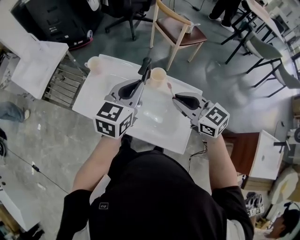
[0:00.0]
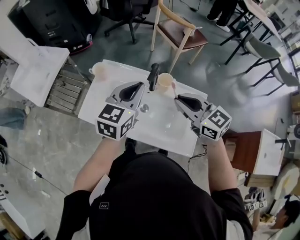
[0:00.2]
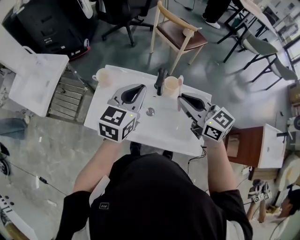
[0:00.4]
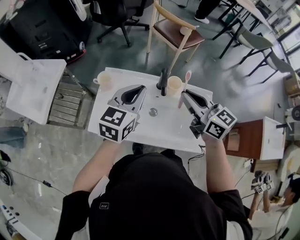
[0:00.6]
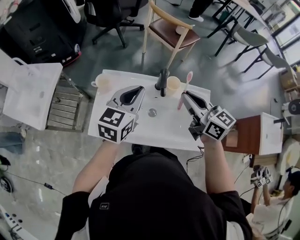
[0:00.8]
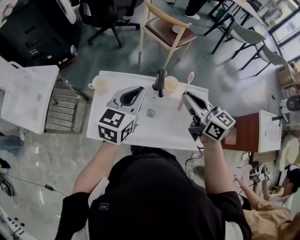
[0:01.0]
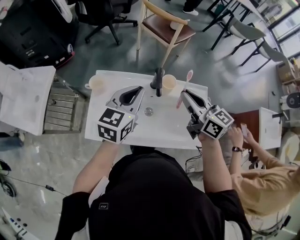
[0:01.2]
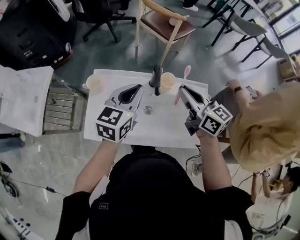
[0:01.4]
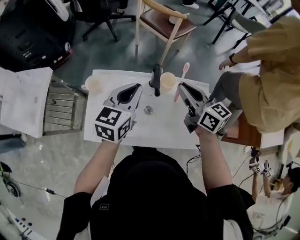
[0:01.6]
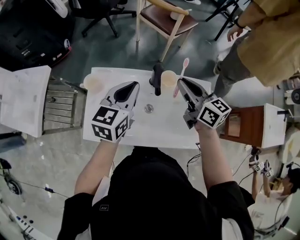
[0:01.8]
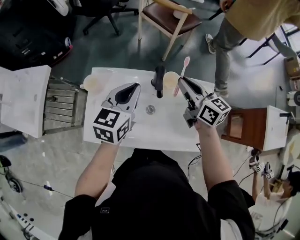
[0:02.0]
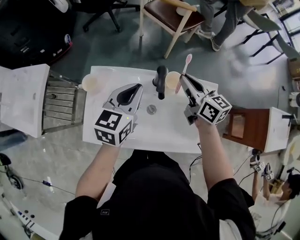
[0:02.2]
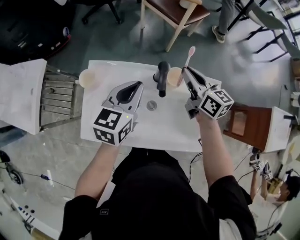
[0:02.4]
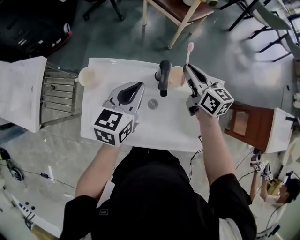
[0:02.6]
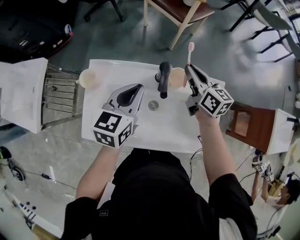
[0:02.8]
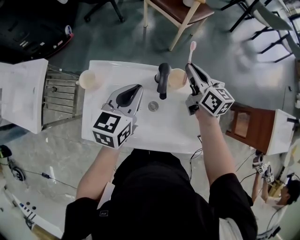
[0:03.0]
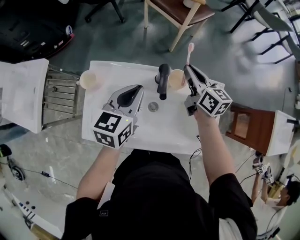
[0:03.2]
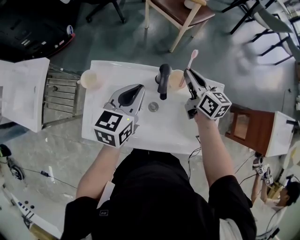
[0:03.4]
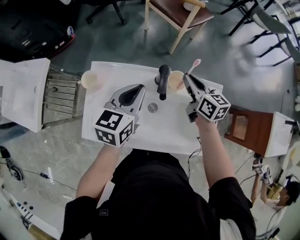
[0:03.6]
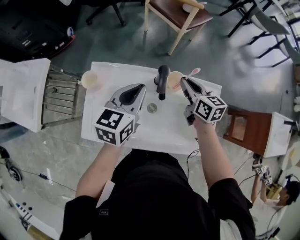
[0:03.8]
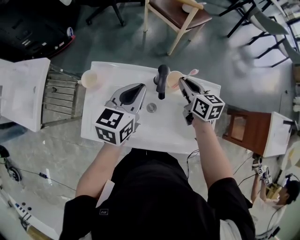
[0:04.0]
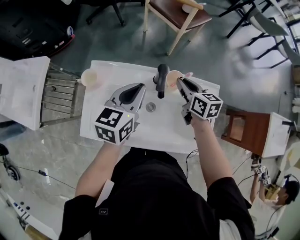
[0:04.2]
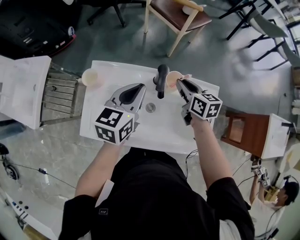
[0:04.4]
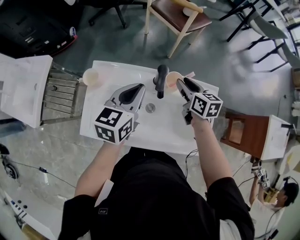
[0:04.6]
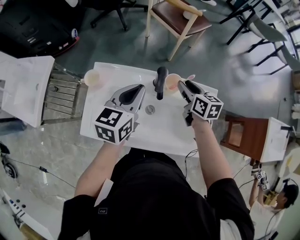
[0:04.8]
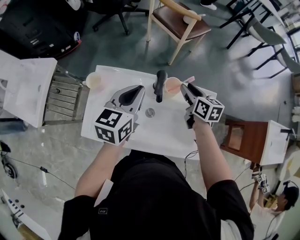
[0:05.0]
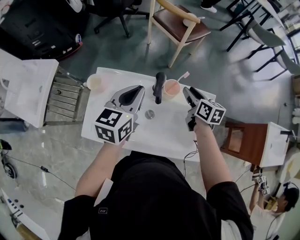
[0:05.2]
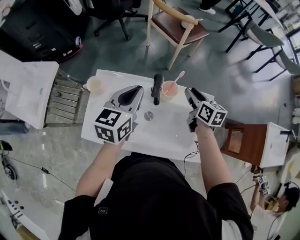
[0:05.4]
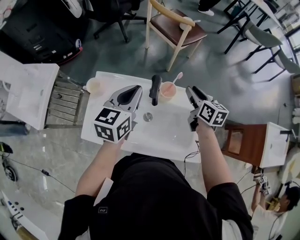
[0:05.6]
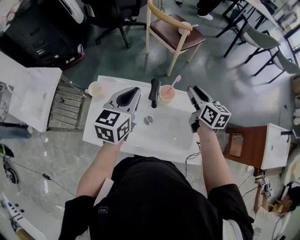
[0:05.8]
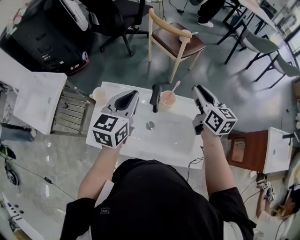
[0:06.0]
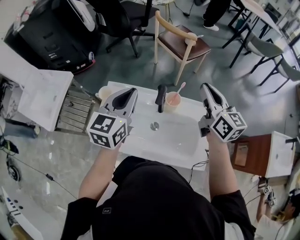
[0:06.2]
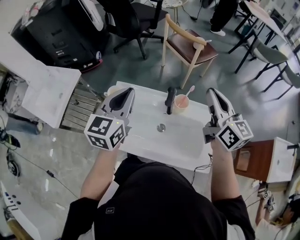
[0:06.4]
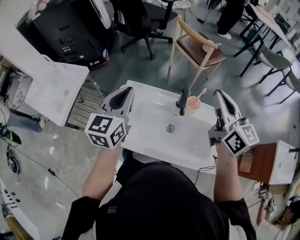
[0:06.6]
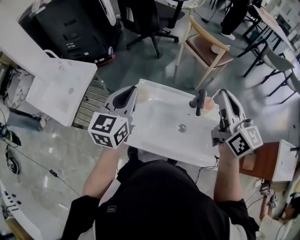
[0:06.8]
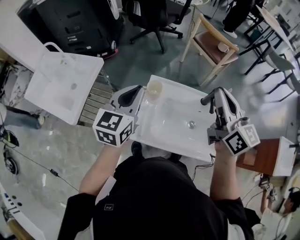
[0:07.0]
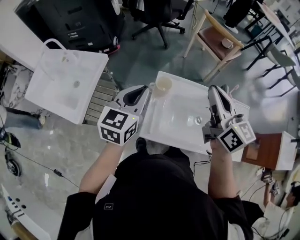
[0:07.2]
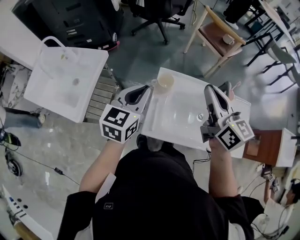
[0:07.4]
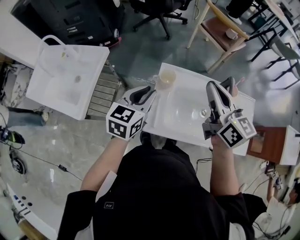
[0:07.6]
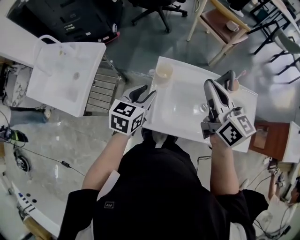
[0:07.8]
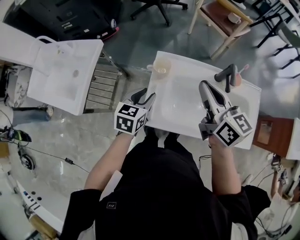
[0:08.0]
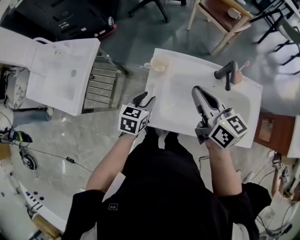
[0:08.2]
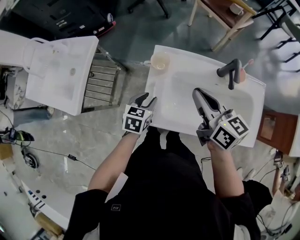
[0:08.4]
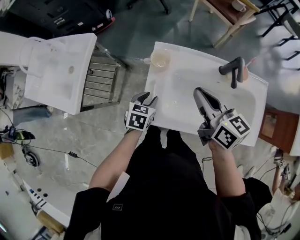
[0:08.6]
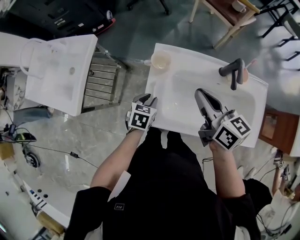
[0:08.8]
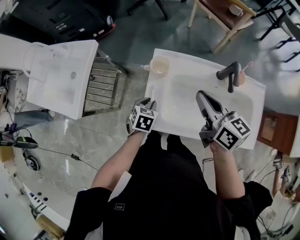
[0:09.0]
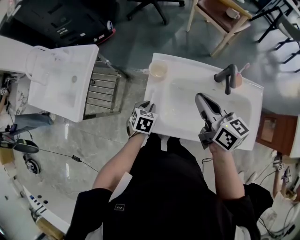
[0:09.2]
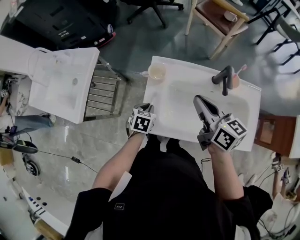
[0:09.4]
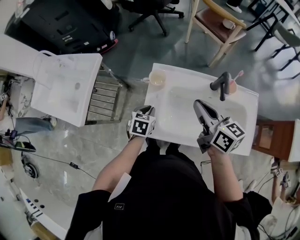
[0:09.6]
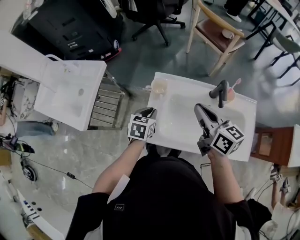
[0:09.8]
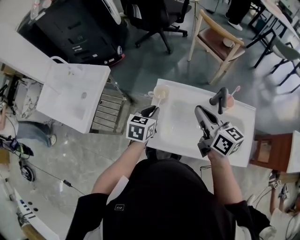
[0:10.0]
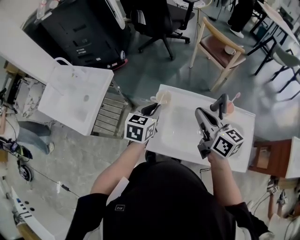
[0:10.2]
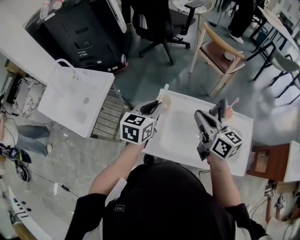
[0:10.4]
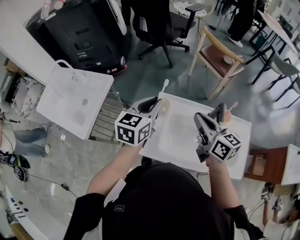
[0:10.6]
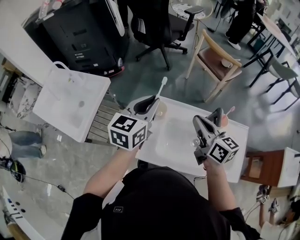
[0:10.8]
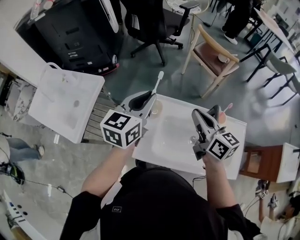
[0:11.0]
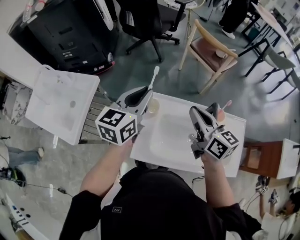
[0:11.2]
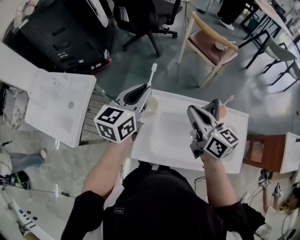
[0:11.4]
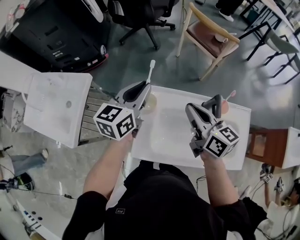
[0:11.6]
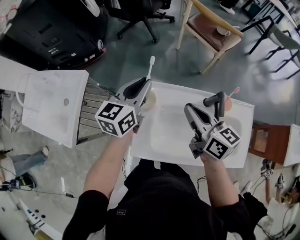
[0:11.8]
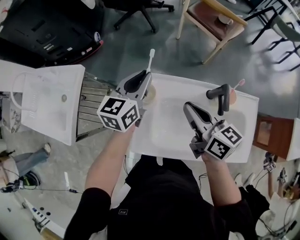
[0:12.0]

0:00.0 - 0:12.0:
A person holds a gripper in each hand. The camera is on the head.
0:00.0 - 0:01.6: The two grippers go approximately 10 cm forward and to the left. The right gripper changes its angle by approximately 40 degrees.
0:01.6 - 0:03.0: The left gripper heads downward, covering about 10 cm, while the right gripper travels forward and downward by about 15 cm.
0:03.0 - 0:04.4: The right gripper moves some 5 cm.
0:04.4 - 0:06.0: The right gripper travels upward and to the right by approximately 20 cm, and rotates roughly 20 degrees. The left gripper travels upward by about 10 cm.
0:06.0 - 0:07.6: The two grippers go approximately 35 cm to the left.
0:07.6 - 0:09.0: The right gripper goes approximately 15 cm downward. The left gripper moves downward, roughly 25 cm, and angles its fingers downward, by about 30 degrees.
0:09.0 - 0:10.4: The left gripper goes about 25 cm upward, and angles its fingers upward, by some 30 degrees. The right gripper heads upward, covering roughly 10 cm.
0:10.4 - 0:12.0: The right gripper is displaced downward and forward by some 10 cm, while the left gripper travels forward by some 10 cm, and reaches approximately 10 cm upward, then returns.

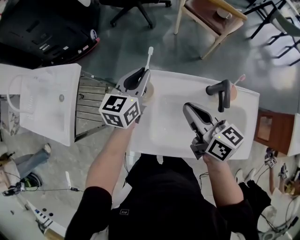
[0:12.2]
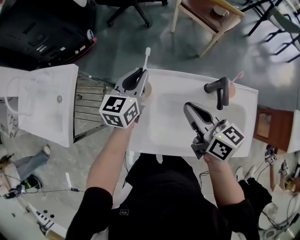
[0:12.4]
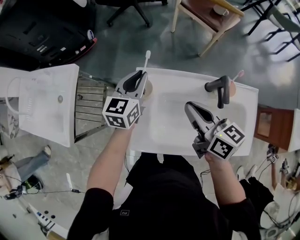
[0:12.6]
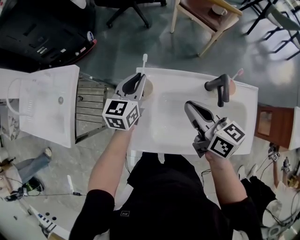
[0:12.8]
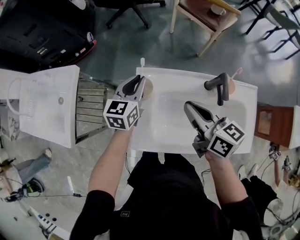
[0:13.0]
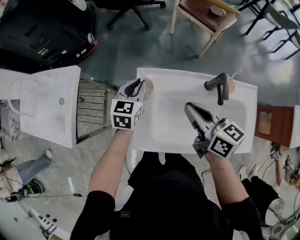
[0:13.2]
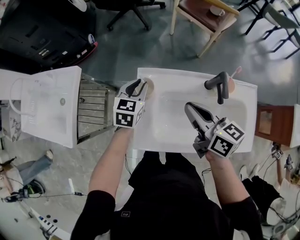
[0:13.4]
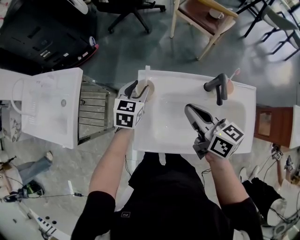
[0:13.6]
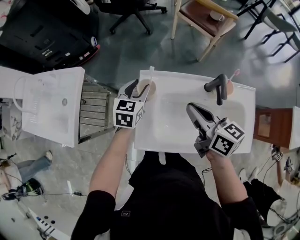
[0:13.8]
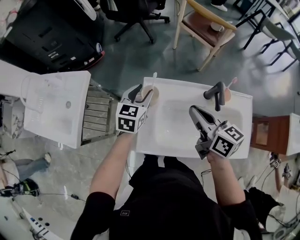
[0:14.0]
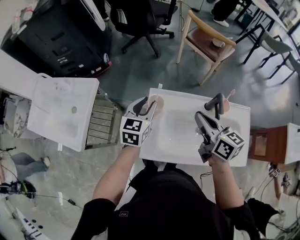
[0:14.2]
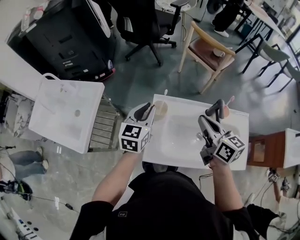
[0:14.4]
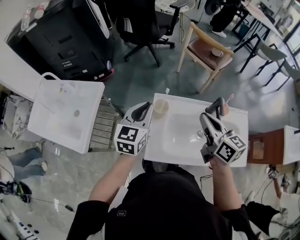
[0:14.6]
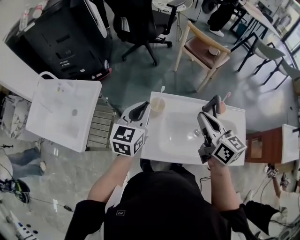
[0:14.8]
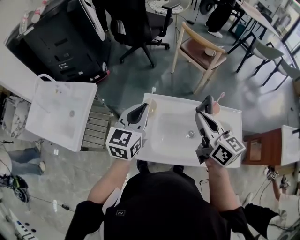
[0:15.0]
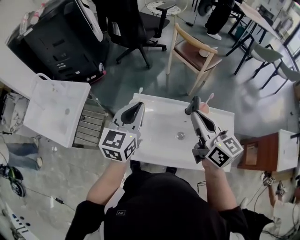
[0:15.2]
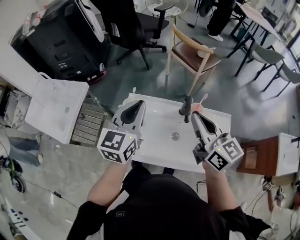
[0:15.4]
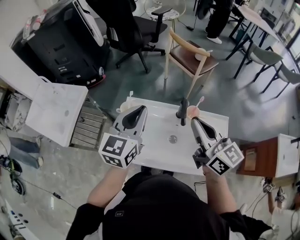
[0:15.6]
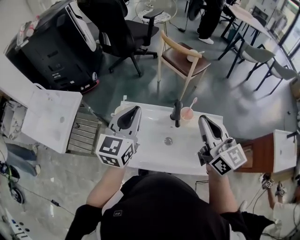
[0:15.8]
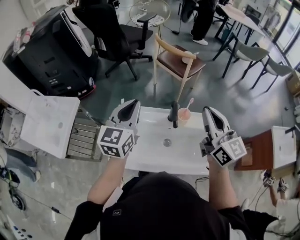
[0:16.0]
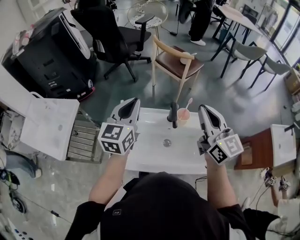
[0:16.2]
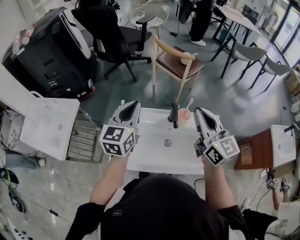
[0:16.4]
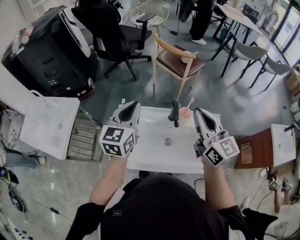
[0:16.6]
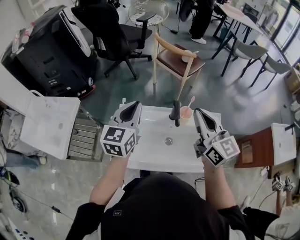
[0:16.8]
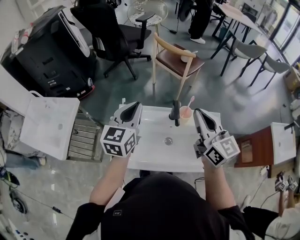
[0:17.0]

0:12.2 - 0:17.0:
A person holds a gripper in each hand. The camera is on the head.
0:12.2 - 0:13.8: The left gripper shifts about 5 cm downward, and opens.
0:13.8 - 0:15.4: The left gripper travels upward, backward and to the right by some 30 cm, rotates approximately 30 degrees, and closes, while the right gripper shifts approximately 20 cm upward and to the right, and rotates about 30 degrees.
0:15.4 - 0:17.0: The right gripper heads to the right, covering roughly 5 cm.

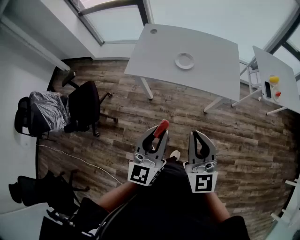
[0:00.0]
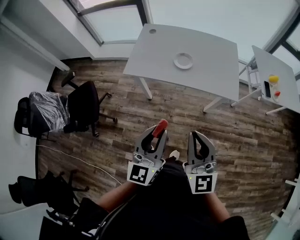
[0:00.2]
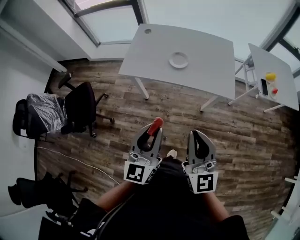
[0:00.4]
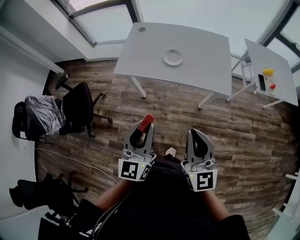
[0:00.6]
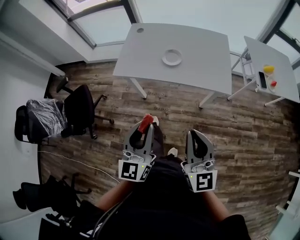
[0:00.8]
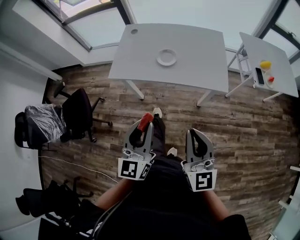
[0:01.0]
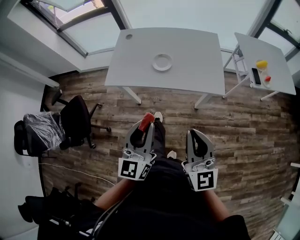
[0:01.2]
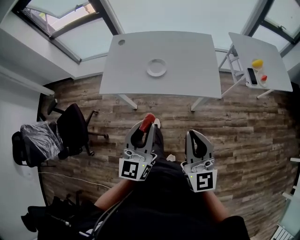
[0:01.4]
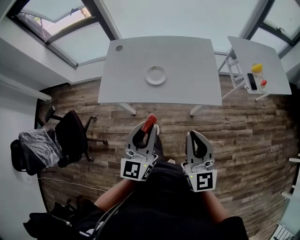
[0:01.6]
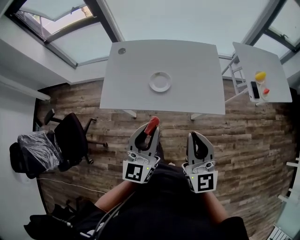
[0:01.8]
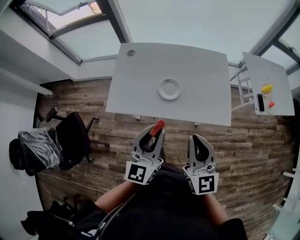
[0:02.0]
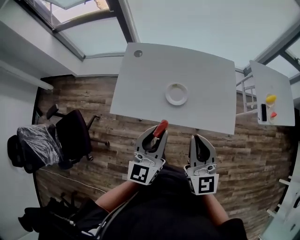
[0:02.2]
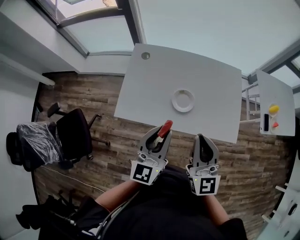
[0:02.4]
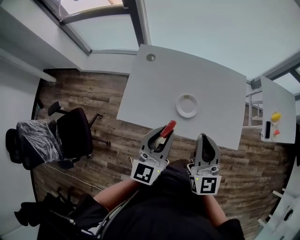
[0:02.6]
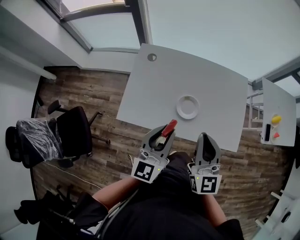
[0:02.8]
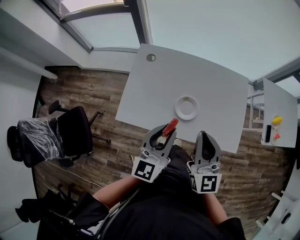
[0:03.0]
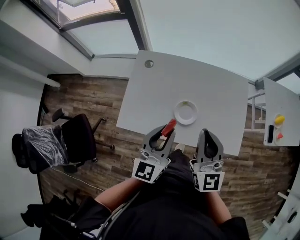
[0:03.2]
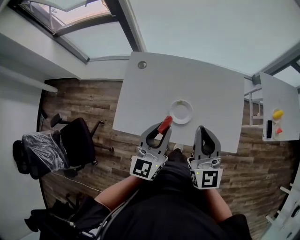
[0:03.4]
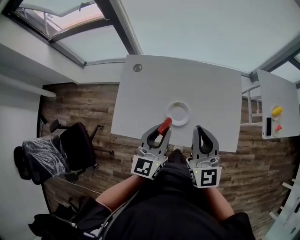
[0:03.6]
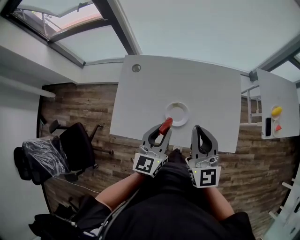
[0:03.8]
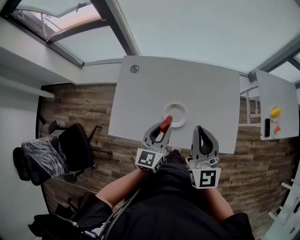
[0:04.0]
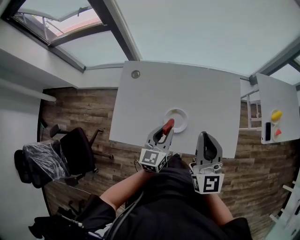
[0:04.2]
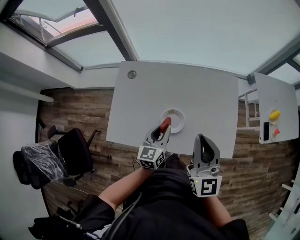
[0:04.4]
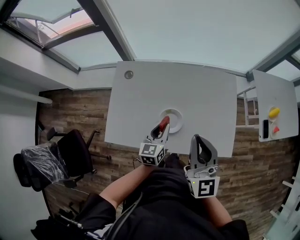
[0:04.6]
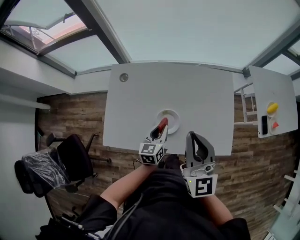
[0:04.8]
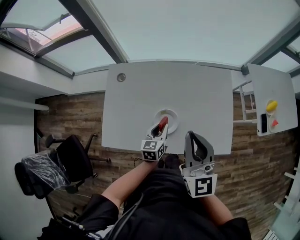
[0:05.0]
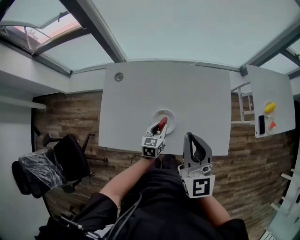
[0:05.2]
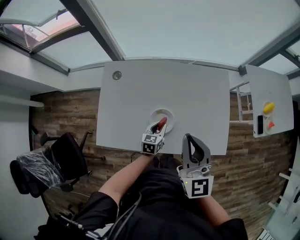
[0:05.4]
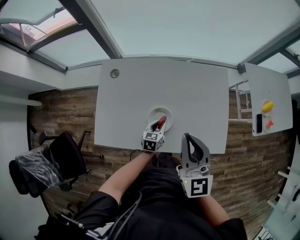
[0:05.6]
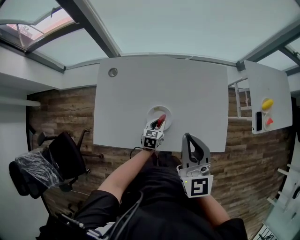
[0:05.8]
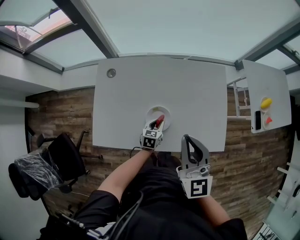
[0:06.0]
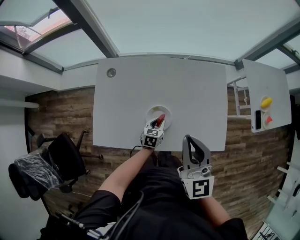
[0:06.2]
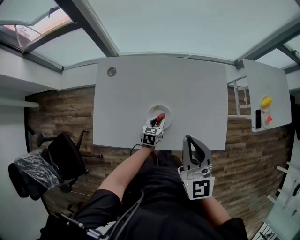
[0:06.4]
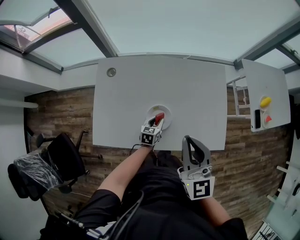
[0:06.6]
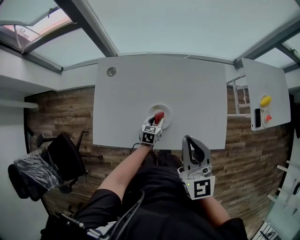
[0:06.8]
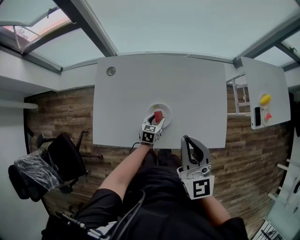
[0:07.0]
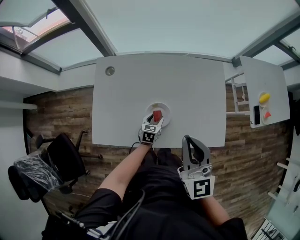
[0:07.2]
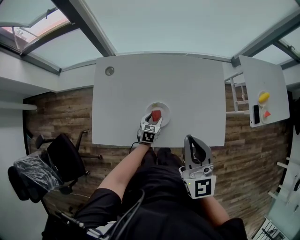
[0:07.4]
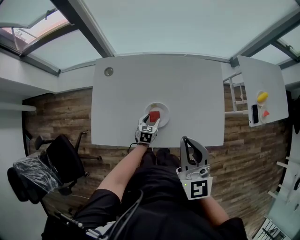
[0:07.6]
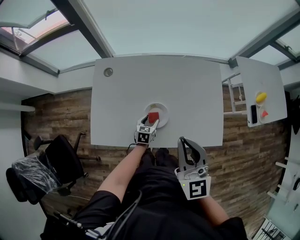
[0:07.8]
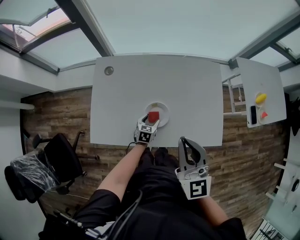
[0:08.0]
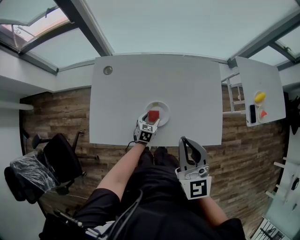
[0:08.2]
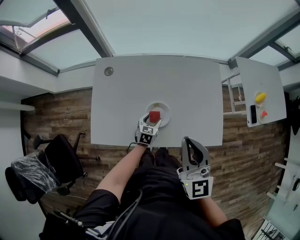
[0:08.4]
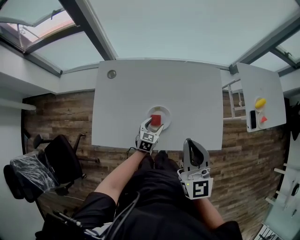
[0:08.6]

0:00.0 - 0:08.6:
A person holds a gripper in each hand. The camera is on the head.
0:00.0 - 0:01.4: The right gripper moves to the right and forward, approximately 10 cm. The left gripper travels forward and to the right by about 10 cm.
0:01.4 - 0:02.8: The two grippers go about 30 cm forward and to the left.
0:02.8 - 0:04.4: The right gripper heads forward and to the right, covering some 10 cm, while the left gripper is displaced downward, forward and to the right by roughly 20 cm.
0:04.4 - 0:05.8: The left gripper shifts about 20 cm downward, and changes its angle by approximately 30 degrees.
0:05.8 - 0:07.2: The left gripper opens up.
0:07.2 - 0:08.6: The grippers make only small movements.
